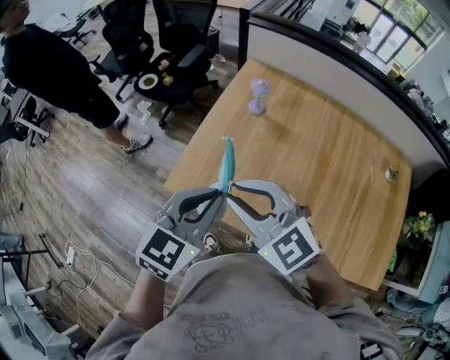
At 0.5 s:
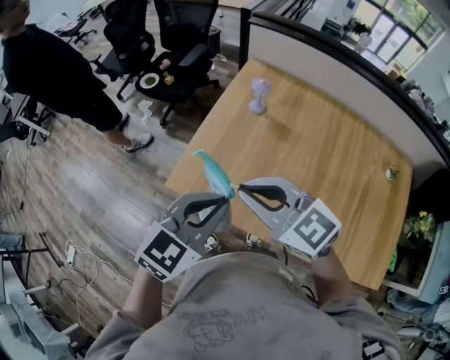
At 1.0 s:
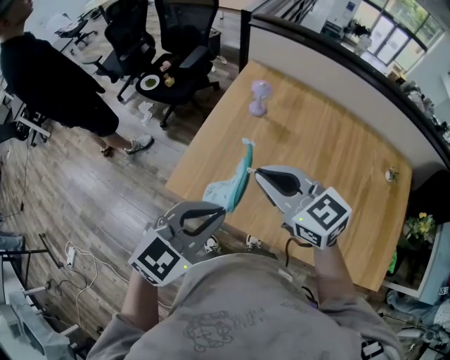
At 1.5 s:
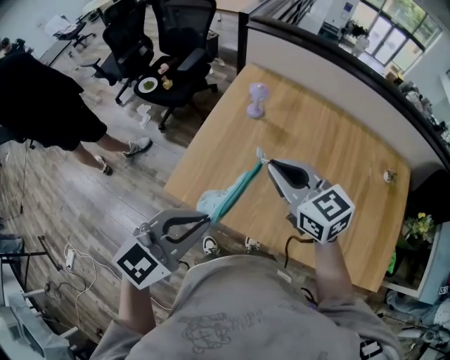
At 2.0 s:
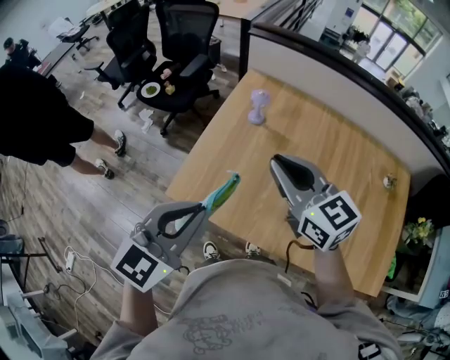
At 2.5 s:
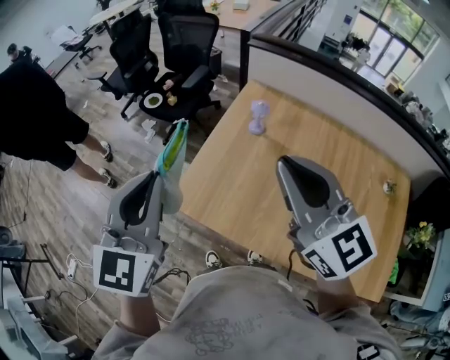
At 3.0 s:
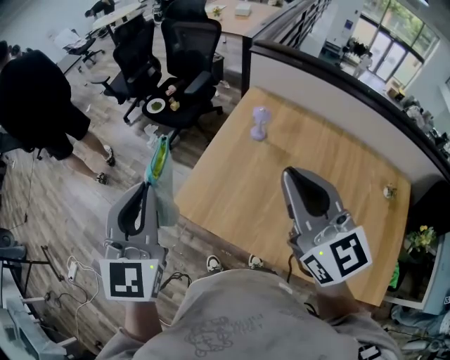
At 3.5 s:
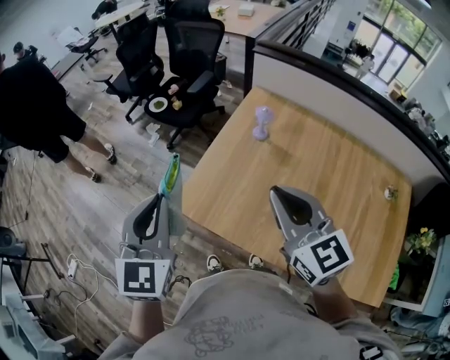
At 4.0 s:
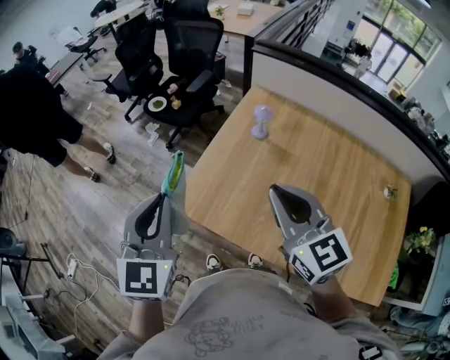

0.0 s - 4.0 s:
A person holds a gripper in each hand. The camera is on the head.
0.0 s - 2.0 s: The right gripper shifts some 10 cm to the right and forward, and swivels about 30 degrees; the left gripper shifts by some 5 cm.
2.0 s - 4.0 s: The right gripper moves about 10 cm upward and comes back, while the left gripper shifts about 10 cm to the left, and rotates roughly 40 degrees.

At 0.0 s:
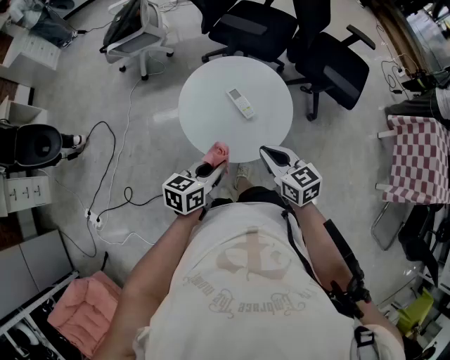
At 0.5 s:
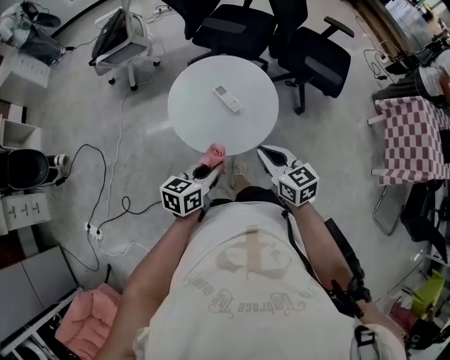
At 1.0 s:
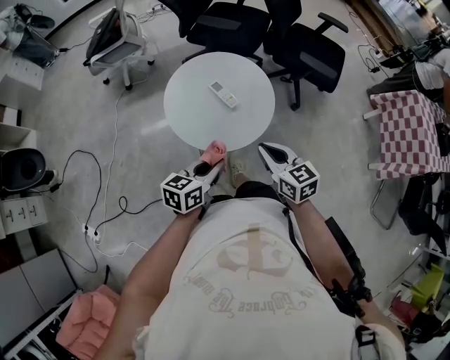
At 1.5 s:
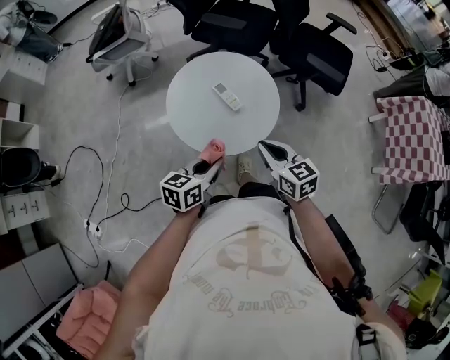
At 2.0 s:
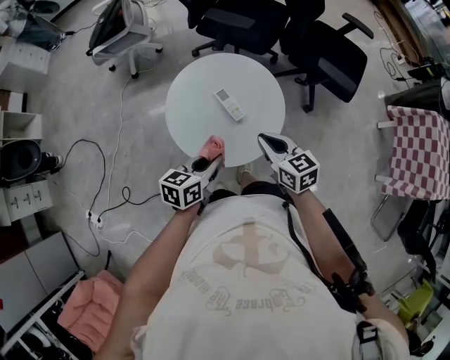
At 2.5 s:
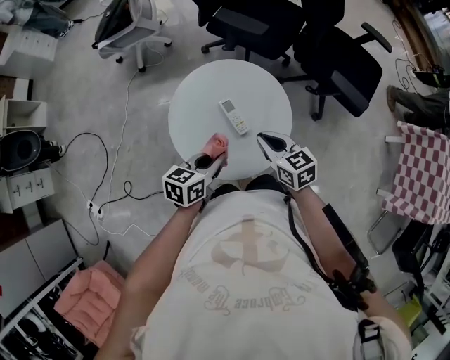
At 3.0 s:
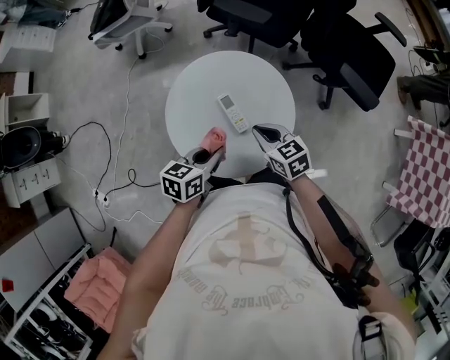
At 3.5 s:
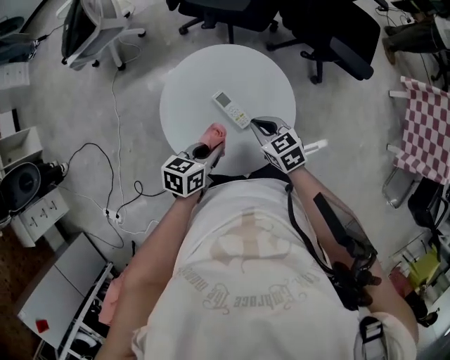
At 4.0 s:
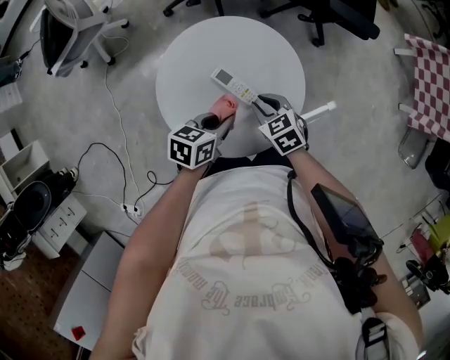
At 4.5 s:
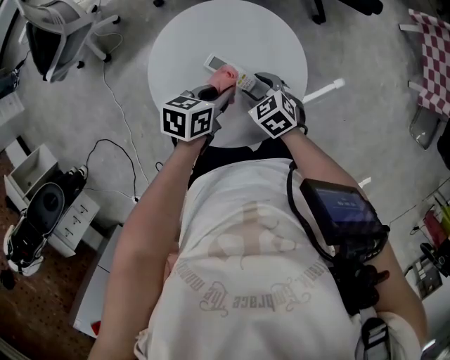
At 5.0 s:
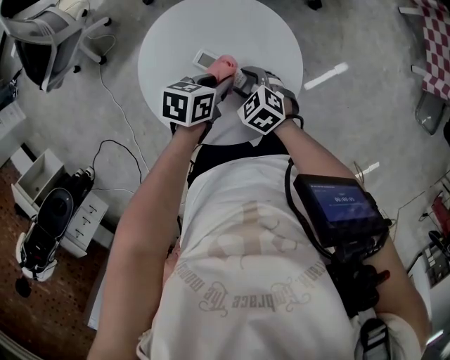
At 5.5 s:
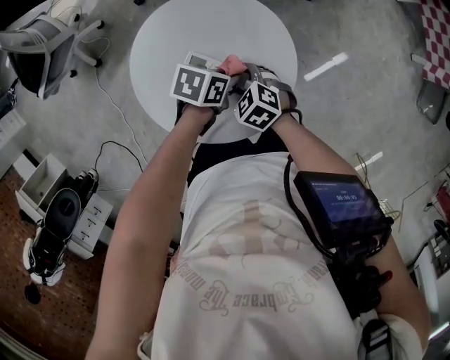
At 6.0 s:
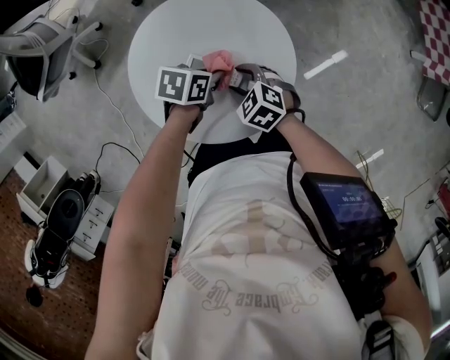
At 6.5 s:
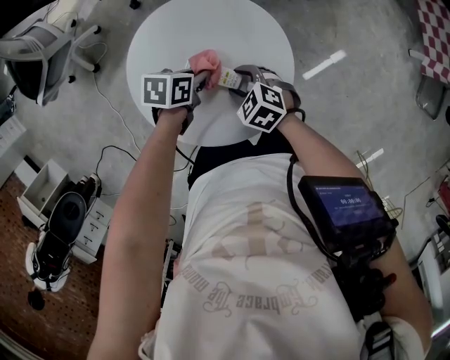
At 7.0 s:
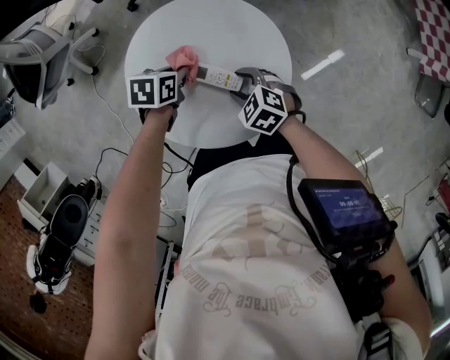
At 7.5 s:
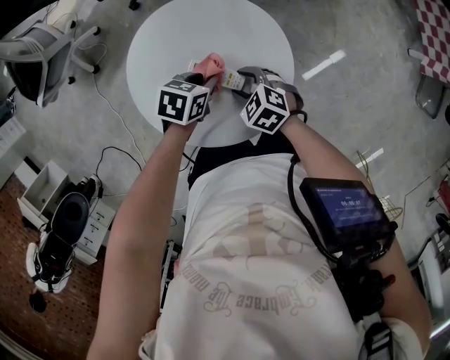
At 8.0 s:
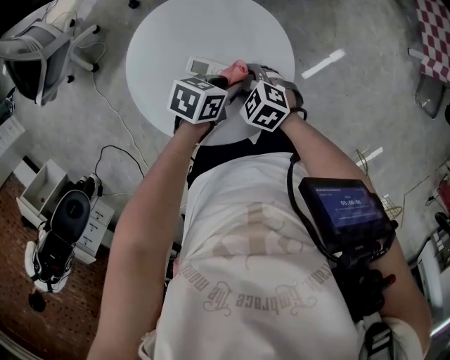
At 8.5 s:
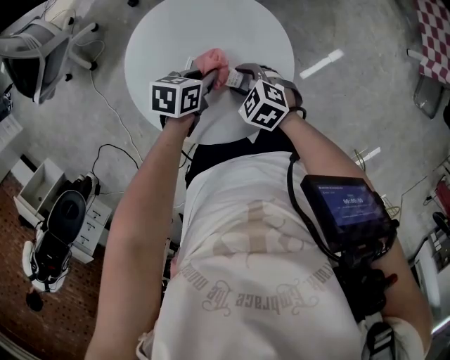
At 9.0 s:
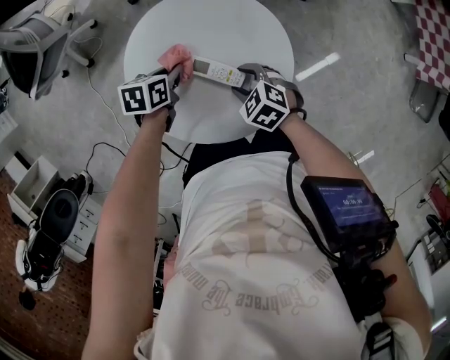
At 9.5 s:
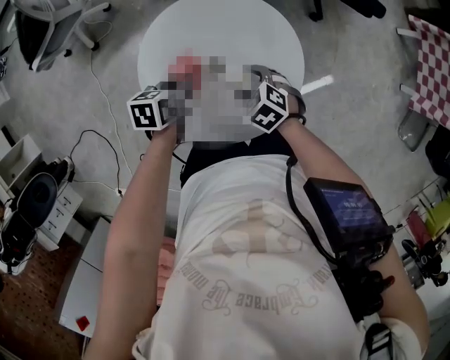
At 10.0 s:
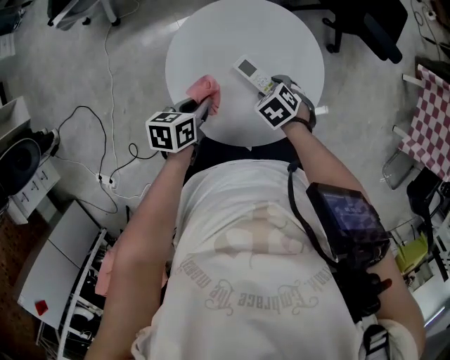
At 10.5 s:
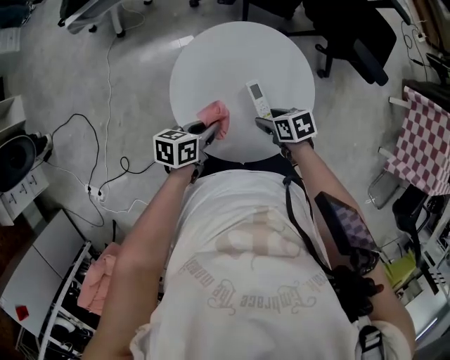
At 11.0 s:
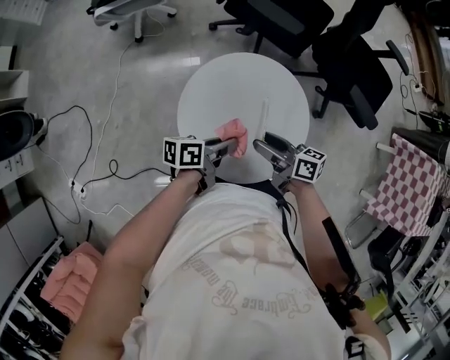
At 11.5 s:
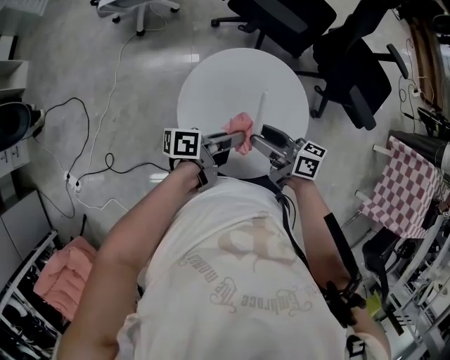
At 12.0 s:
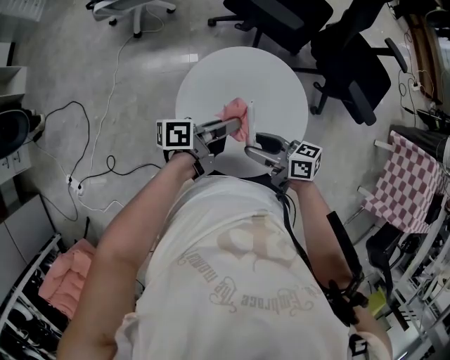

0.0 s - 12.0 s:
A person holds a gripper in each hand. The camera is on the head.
0.0 s - 2.0 s: The left gripper shifts by approximately 5 cm; the right gripper moves forward, some 5 cm.
2.0 s - 4.0 s: The left gripper shifts by some 15 cm, and rotates approximately 30 degrees, while the right gripper heads downward, covering about 15 cm, and turns by roughly 30 degrees.
4.0 s - 6.0 s: The left gripper shifts about 10 cm downward, and turns by about 30 degrees, while the right gripper moves about 5 cm, and opens its fingers.
6.0 s - 8.0 s: The left gripper changes place by approximately 5 cm.
8.0 s - 10.0 s: The right gripper rotates about 20 degrees. The left gripper moves about 20 cm, and changes its angle by about 50 degrees.
10.0 s - 12.0 s: Both grippers travel together upward, some 15 cm. The right gripper angles its fingers upward, by about 60 degrees; the left gripper points its fingers about 40 degrees further upward.

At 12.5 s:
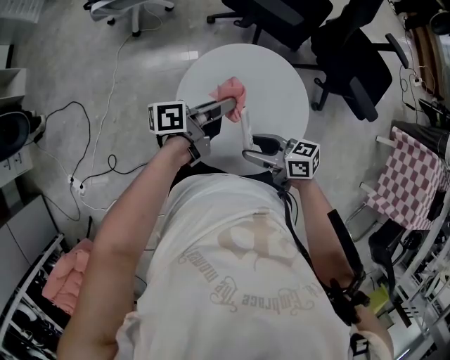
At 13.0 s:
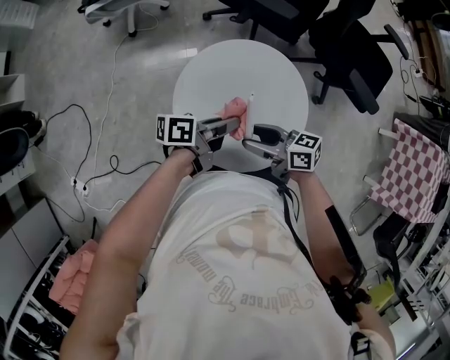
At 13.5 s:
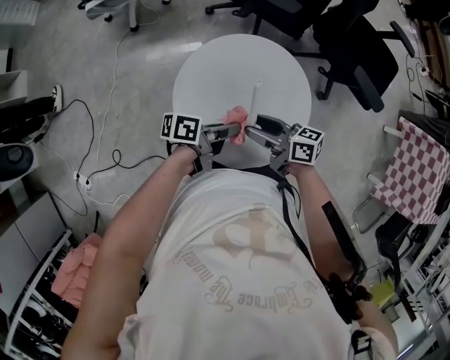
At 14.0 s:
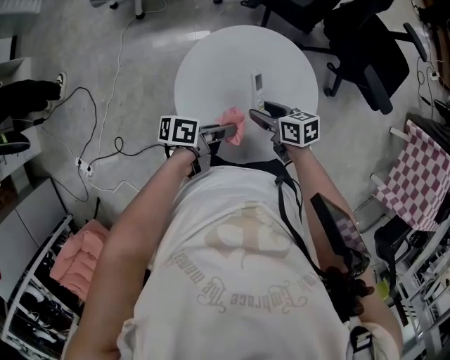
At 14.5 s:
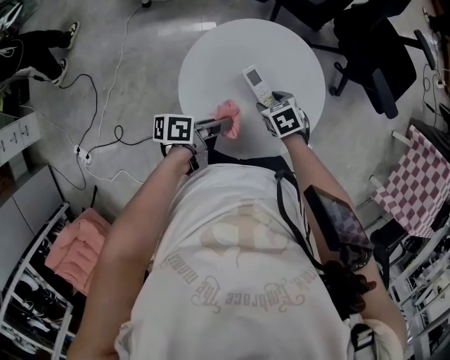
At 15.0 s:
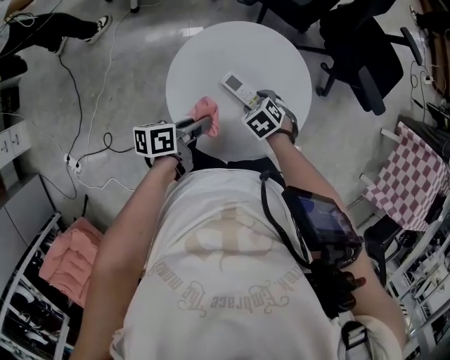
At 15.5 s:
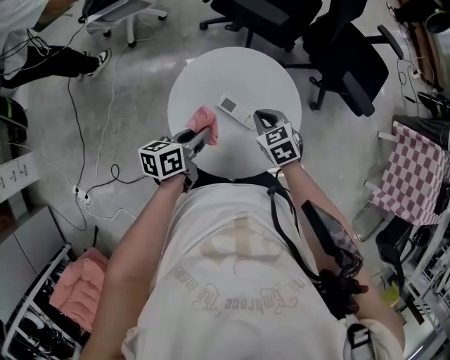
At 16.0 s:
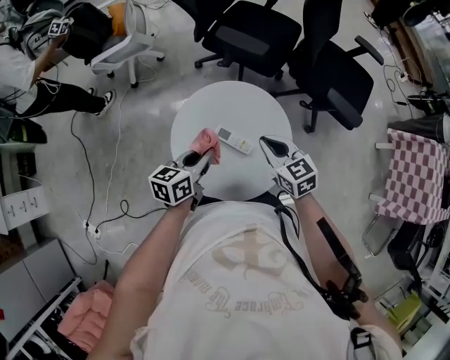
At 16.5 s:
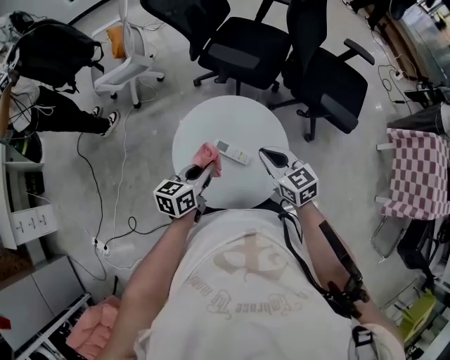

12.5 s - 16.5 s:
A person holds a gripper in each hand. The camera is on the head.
12.5 s - 14.5 s: Both grippers move downward, approximately 15 cm. The left gripper turns by about 20 degrees, while the right gripper angles its fingers downward, by approximately 50 degrees.
14.5 s - 16.5 s: The right gripper shifts approximately 20 cm upward, points its fingers approximately 40 degrees further upward, and closes up; the left gripper is displaced upward by about 10 cm, and rolls clockwise, seen from behind, by some 40 degrees.

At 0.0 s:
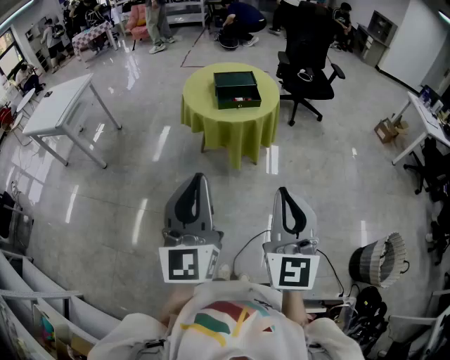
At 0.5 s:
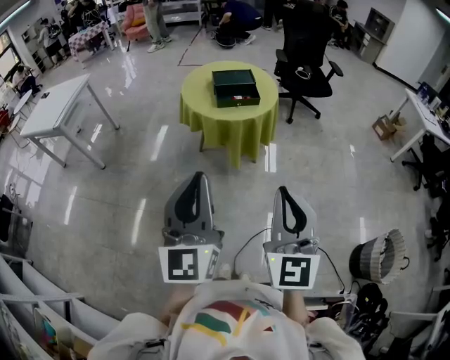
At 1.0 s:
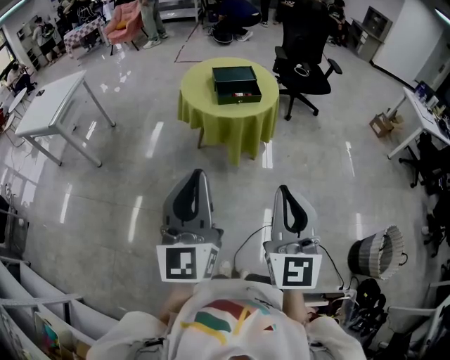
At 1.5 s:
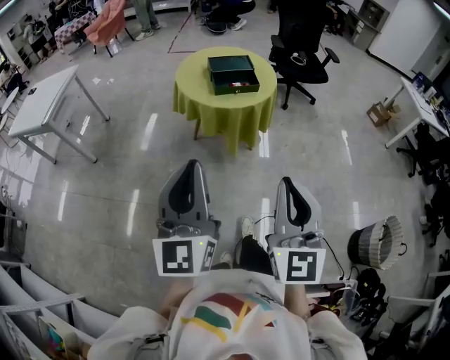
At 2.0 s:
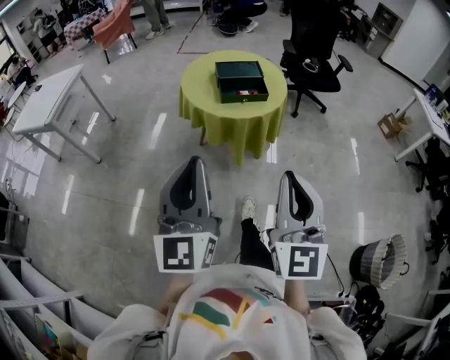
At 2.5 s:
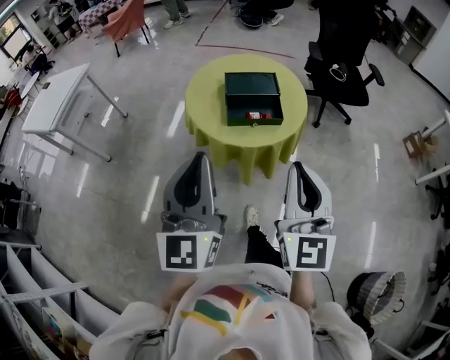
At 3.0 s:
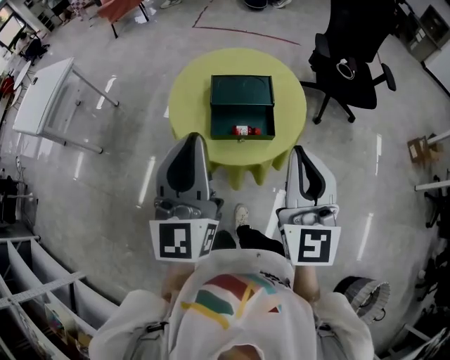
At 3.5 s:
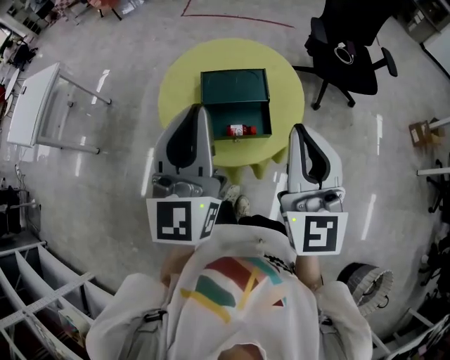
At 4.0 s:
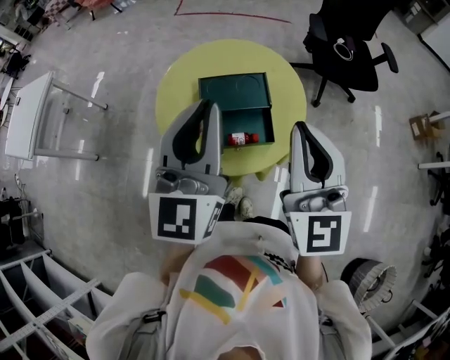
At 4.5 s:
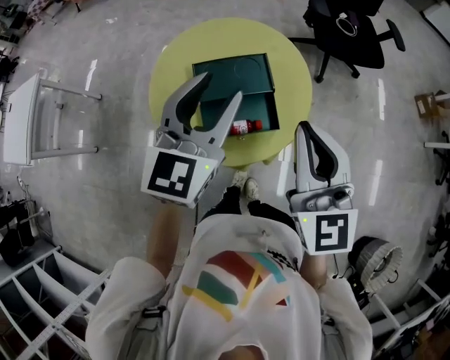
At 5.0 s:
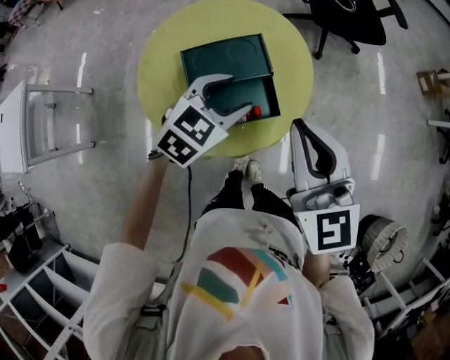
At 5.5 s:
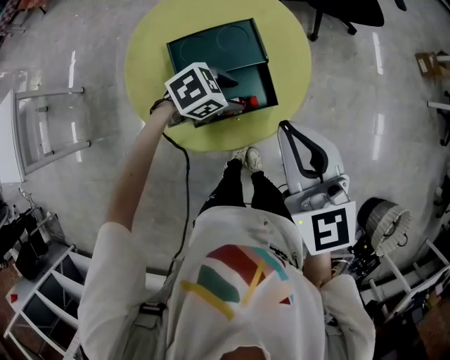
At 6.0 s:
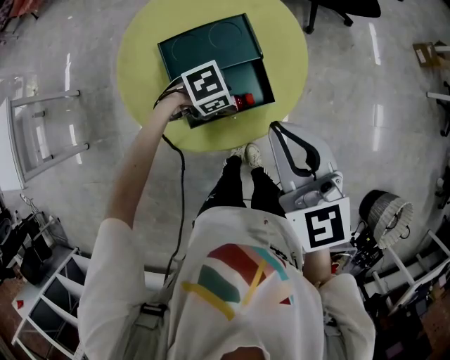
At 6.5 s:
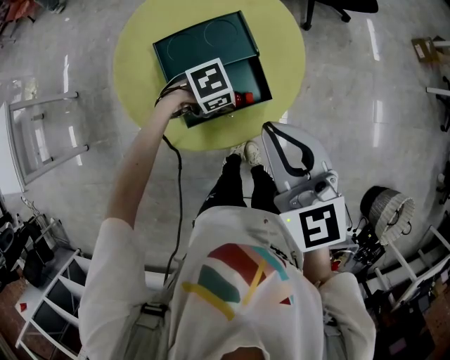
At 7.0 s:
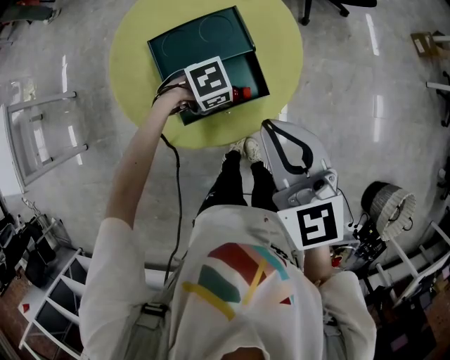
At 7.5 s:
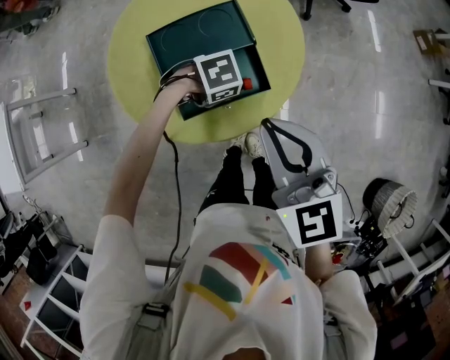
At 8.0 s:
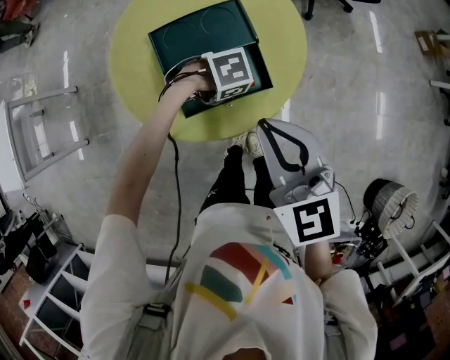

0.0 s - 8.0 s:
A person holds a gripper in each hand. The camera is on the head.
0.0 s - 2.0 s: The two grippers go about 10 cm forward.
2.0 s - 4.0 s: The pair of grippers is taken forward, approximately 50 cm.
4.0 s - 6.0 s: The right gripper travels downward by roughly 15 cm, and rotates roughly 20 degrees; the left gripper goes some 40 cm downward, tips its fingers downward by roughly 70 degrees, and opens.
6.0 s - 8.0 s: There are only small adjustments of the grippers.
